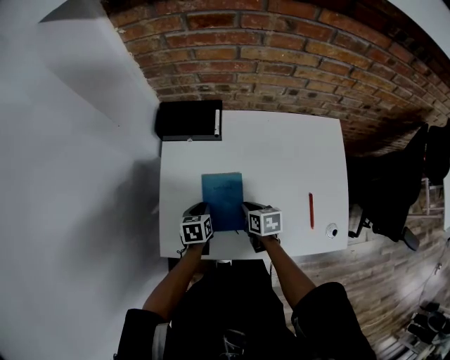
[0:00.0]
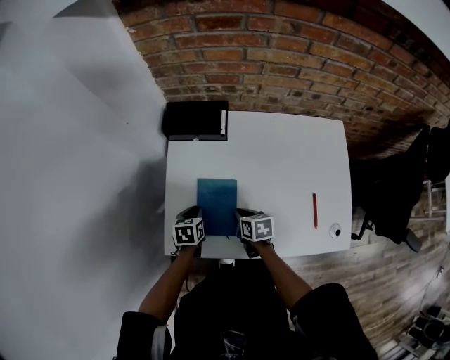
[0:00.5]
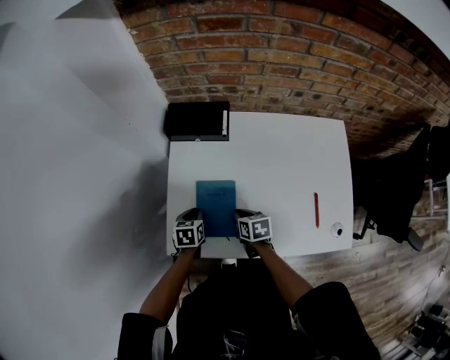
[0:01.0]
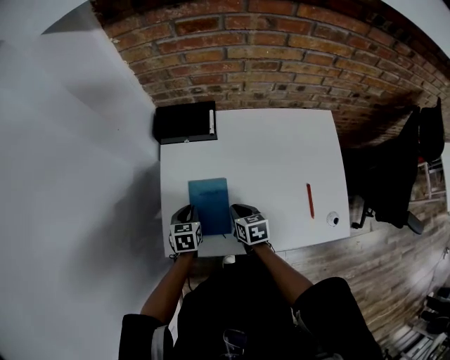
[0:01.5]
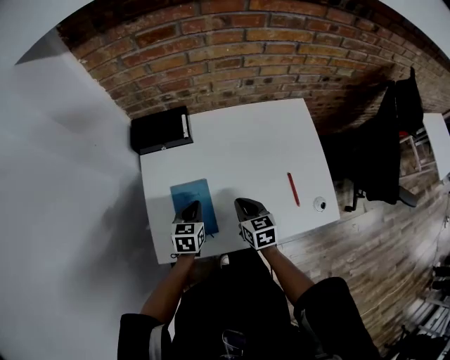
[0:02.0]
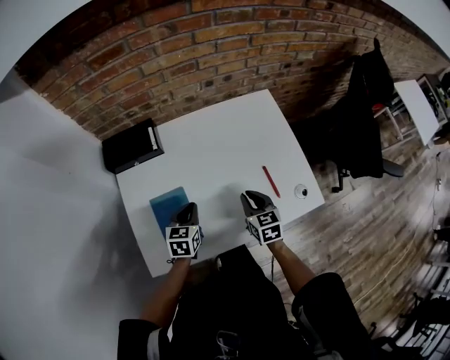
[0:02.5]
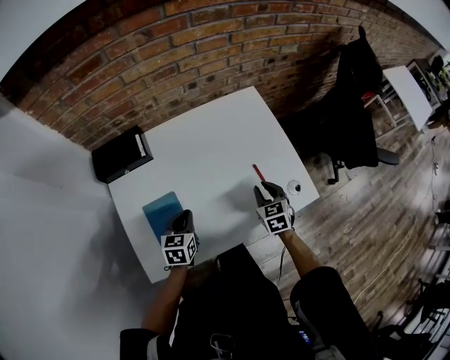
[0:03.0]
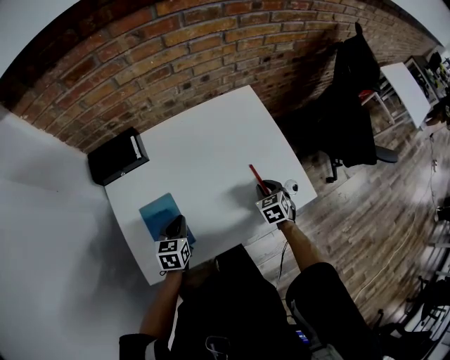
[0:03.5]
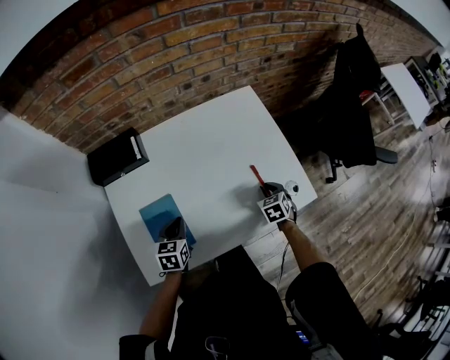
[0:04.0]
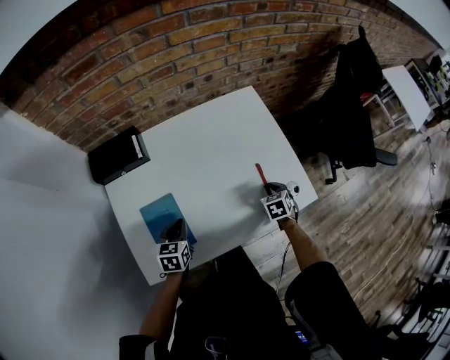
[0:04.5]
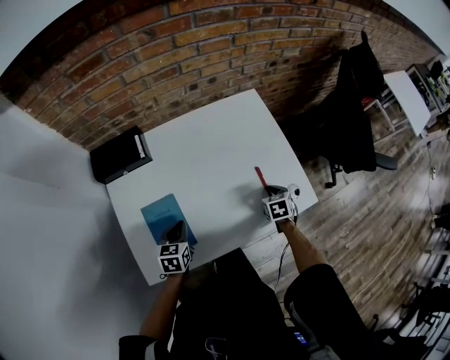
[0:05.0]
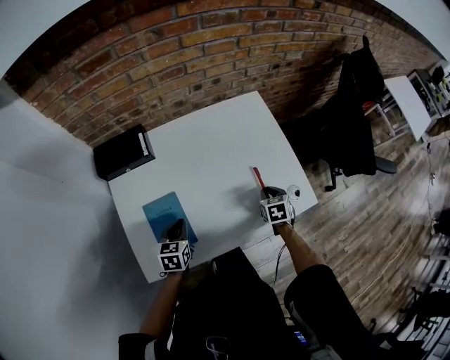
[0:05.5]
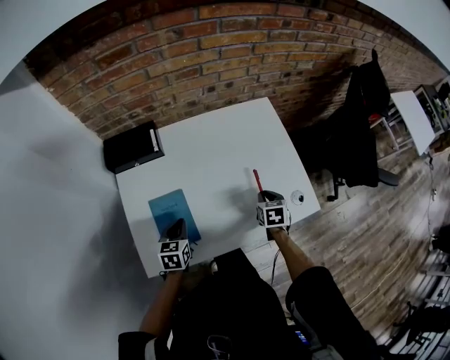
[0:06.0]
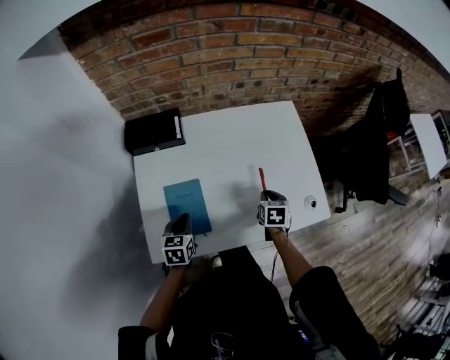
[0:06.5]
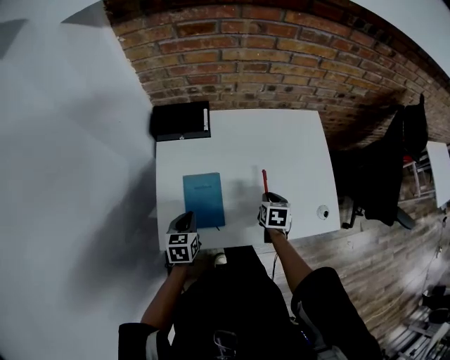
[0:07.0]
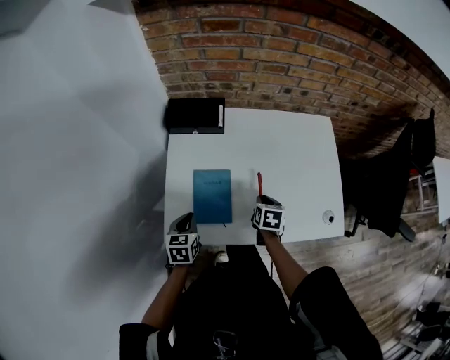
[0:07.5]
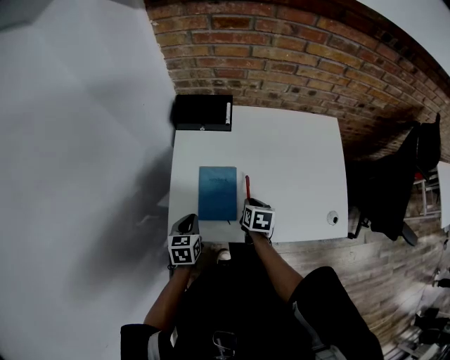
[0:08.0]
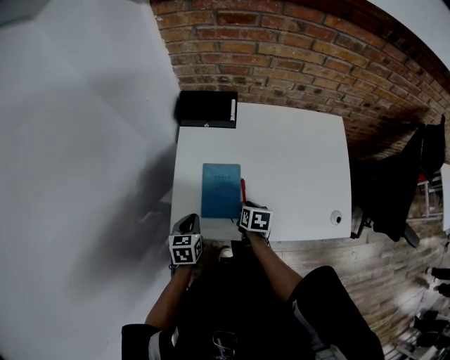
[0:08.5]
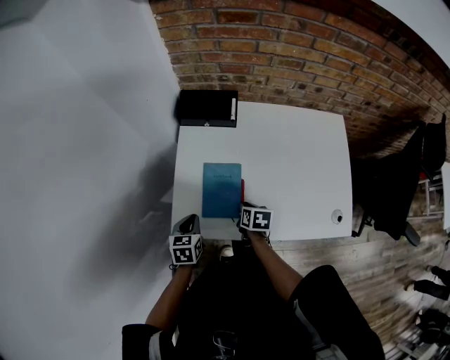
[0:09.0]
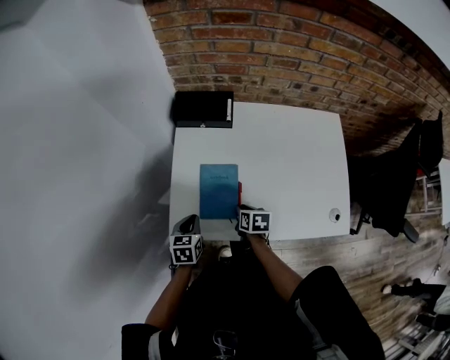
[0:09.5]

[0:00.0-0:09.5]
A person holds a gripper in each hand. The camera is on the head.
0:00.0 to 0:02.0: The grippers both shift upward by about 5 cm. The left gripper turns by some 20 degrees. The right gripper reaches about 5 cm to the left, then returns, and swivels roughly 20 degrees.
0:02.0 to 0:04.0: The left gripper heads to the right, covering about 5 cm. Meanwhile the right gripper heads to the right, covering roughly 25 cm, and rotates about 30 degrees.
0:04.0 to 0:05.5: The grippers move only a little.
0:05.5 to 0:07.5: The right gripper heads to the left, covering about 20 cm, while the left gripper is displaced to the left and backward by approximately 15 cm, and rotates approximately 20 degrees.
0:07.5 to 0:09.5: The right gripper shifts about 10 cm to the left.

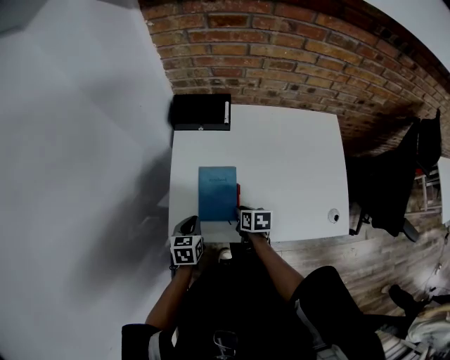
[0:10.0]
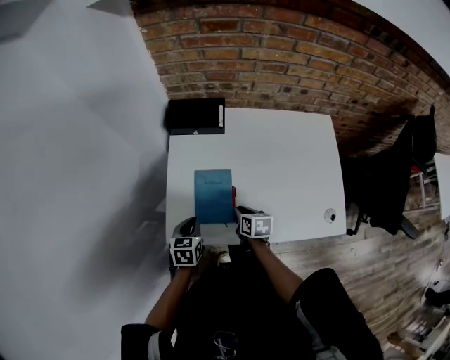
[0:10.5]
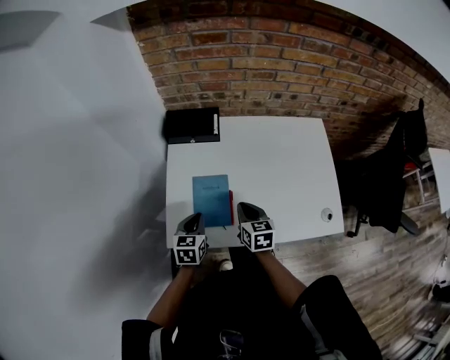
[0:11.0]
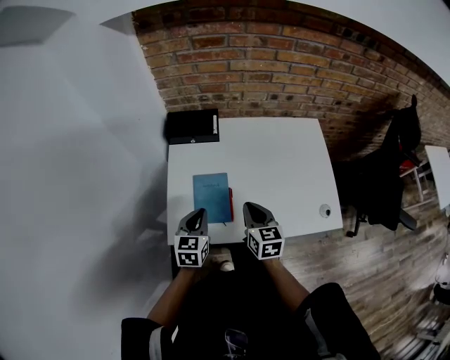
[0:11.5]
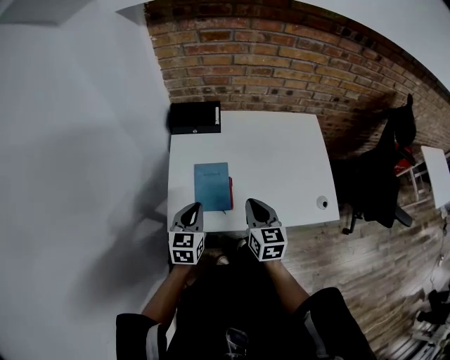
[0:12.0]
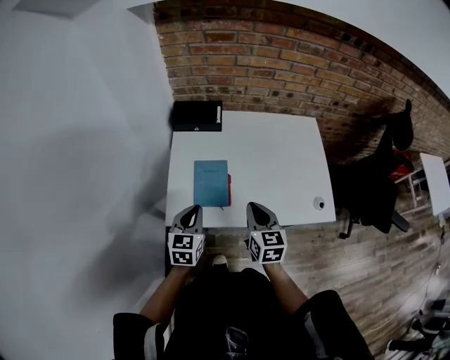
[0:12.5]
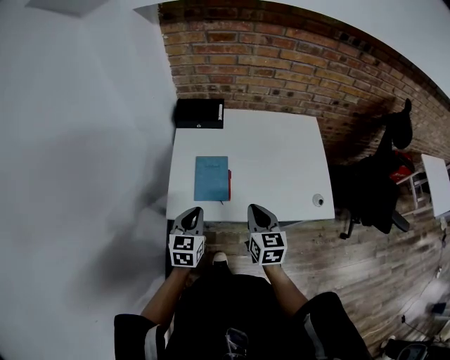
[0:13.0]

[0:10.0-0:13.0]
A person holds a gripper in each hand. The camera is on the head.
0:10.0 to 0:11.5: The right gripper is displaced upward by roughly 15 cm, and swivels approximately 40 degrees. Meanwhile the left gripper moves upward and to the right, about 10 cm, and rotates some 20 degrees.
0:11.5 to 0:13.0: Both grippers move backward, some 10 cm.

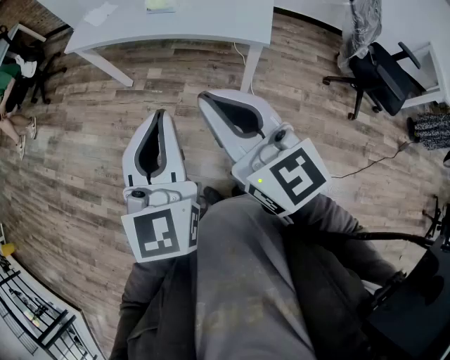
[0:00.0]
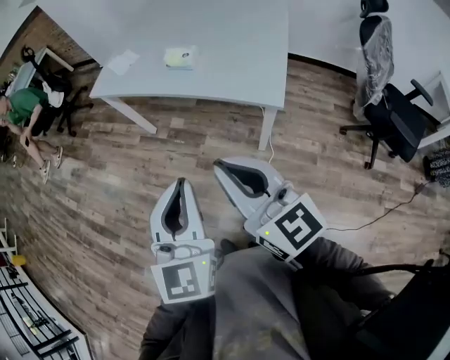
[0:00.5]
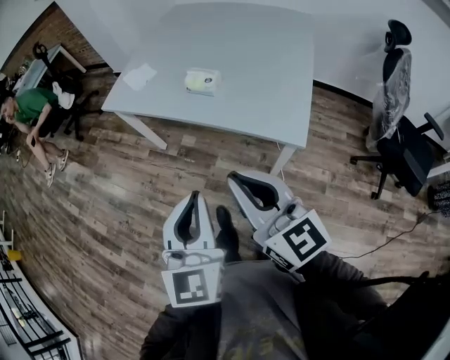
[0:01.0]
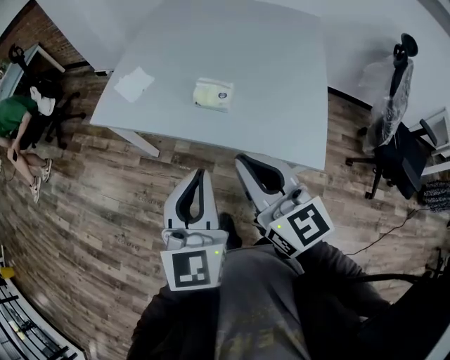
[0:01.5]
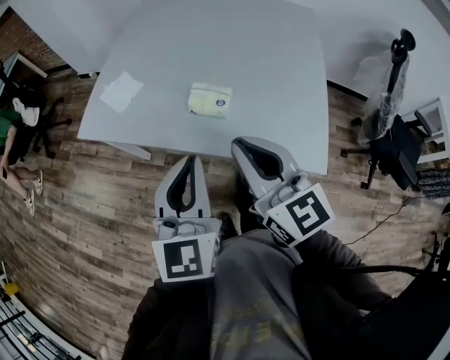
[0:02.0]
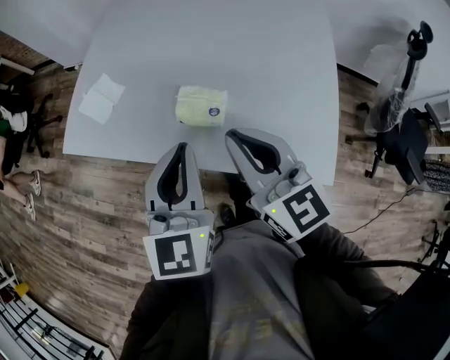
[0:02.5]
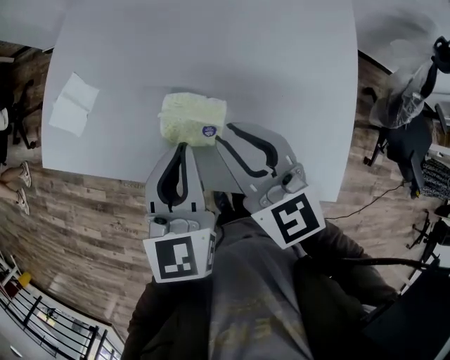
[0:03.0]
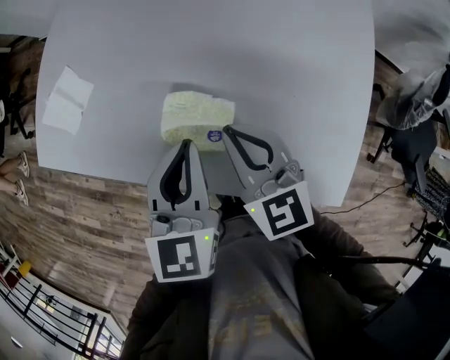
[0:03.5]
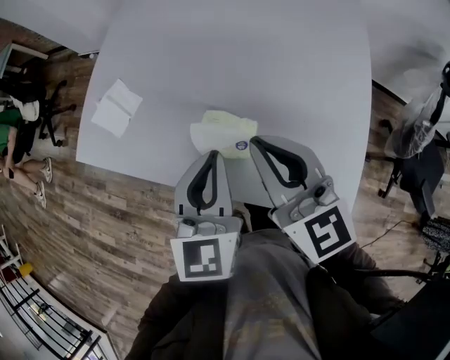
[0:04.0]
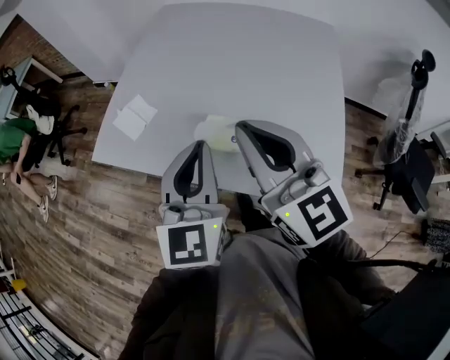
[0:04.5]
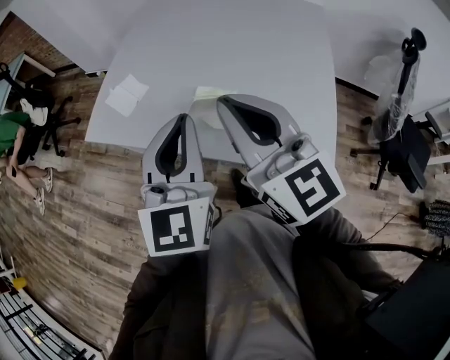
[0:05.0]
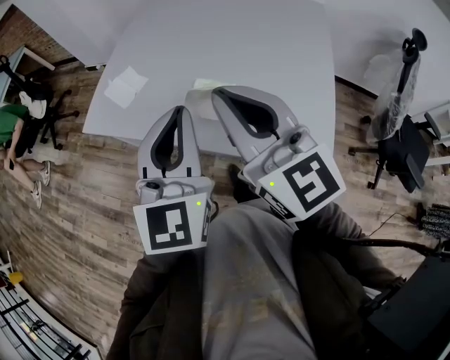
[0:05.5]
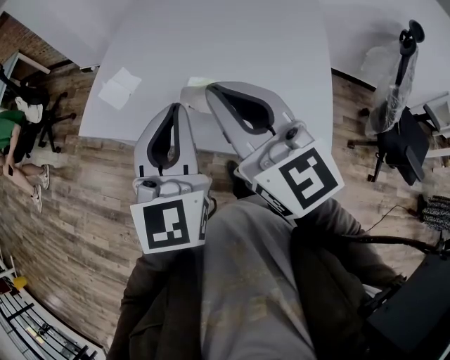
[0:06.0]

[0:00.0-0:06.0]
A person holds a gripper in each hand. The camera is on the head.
0:00.0 to 0:02.0: The pair of grippers is taken forward, roughly 40 cm.
0:02.0 to 0:04.0: The right gripper heads forward, covering about 20 cm. The left gripper is displaced forward and downward by roughly 20 cm.
0:04.0 to 0:06.0: Both grippers travel together upward and backward, about 20 cm.

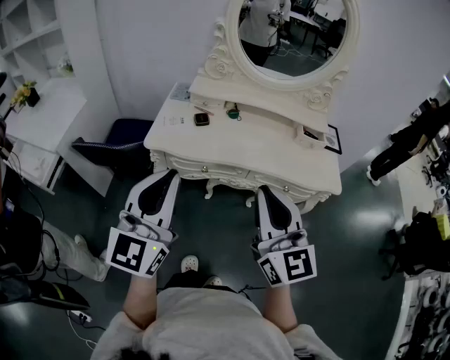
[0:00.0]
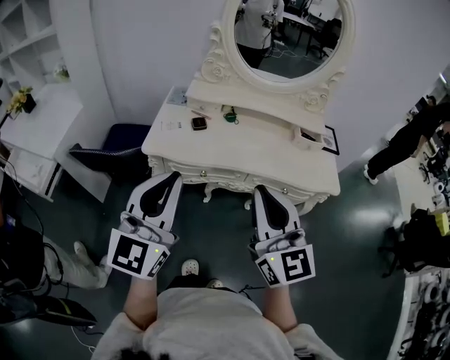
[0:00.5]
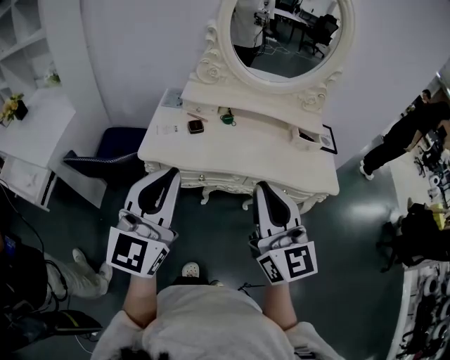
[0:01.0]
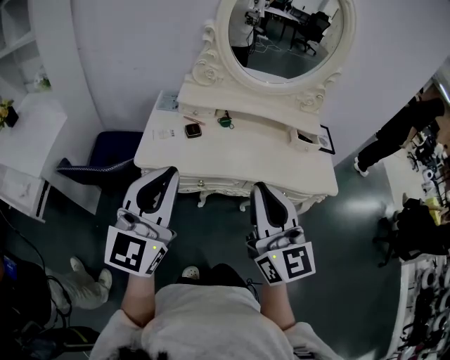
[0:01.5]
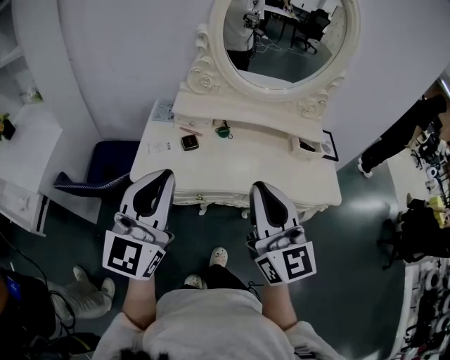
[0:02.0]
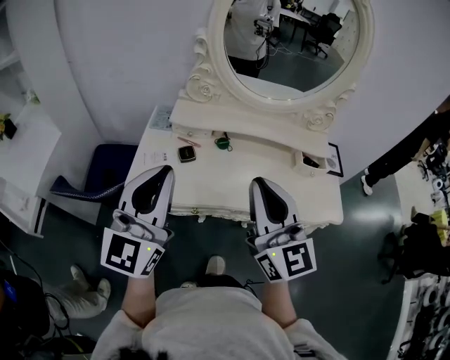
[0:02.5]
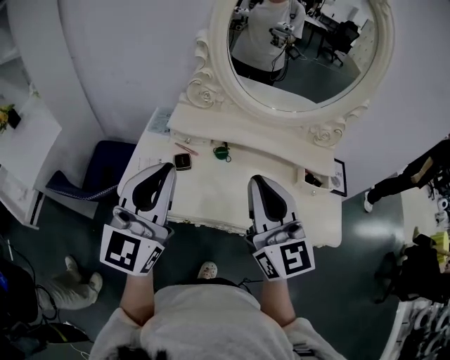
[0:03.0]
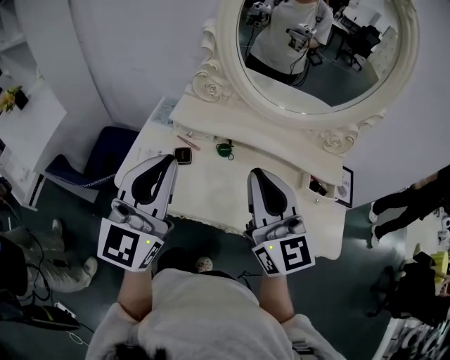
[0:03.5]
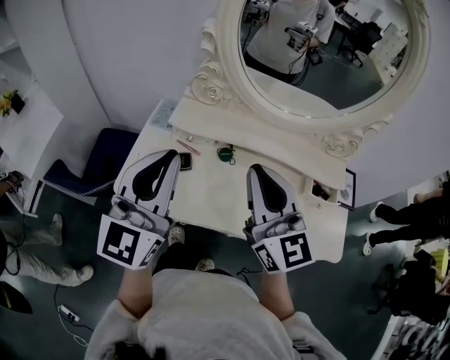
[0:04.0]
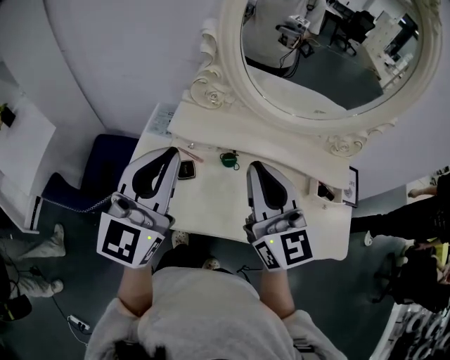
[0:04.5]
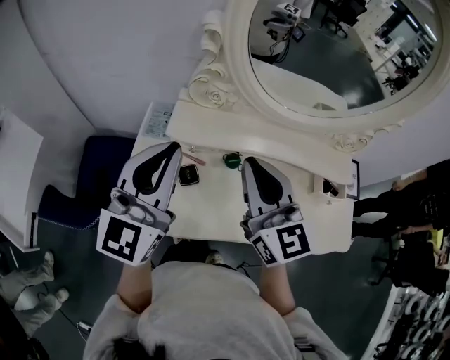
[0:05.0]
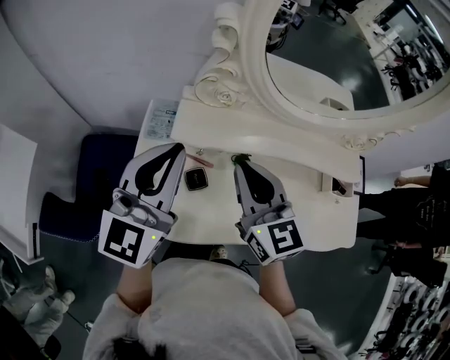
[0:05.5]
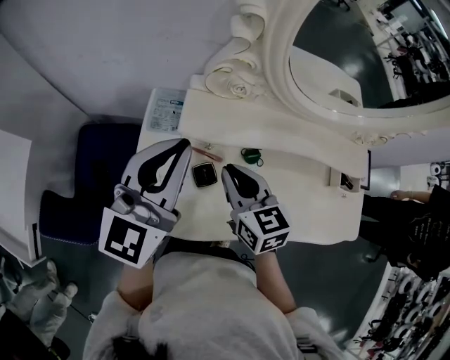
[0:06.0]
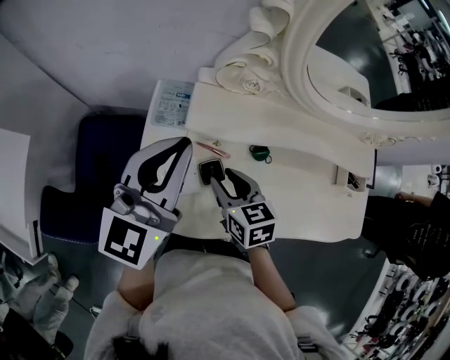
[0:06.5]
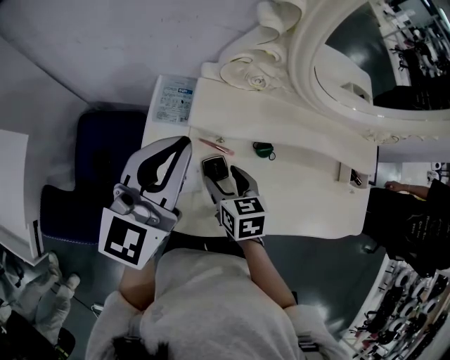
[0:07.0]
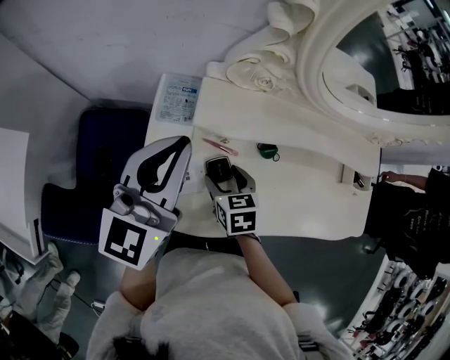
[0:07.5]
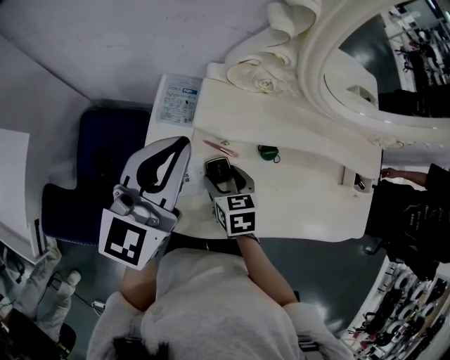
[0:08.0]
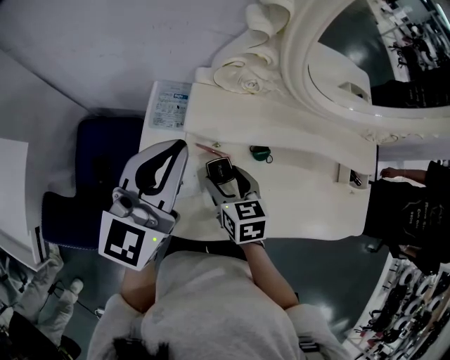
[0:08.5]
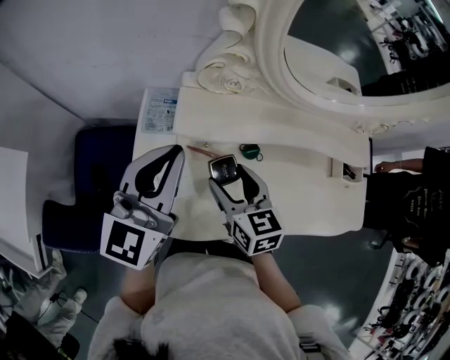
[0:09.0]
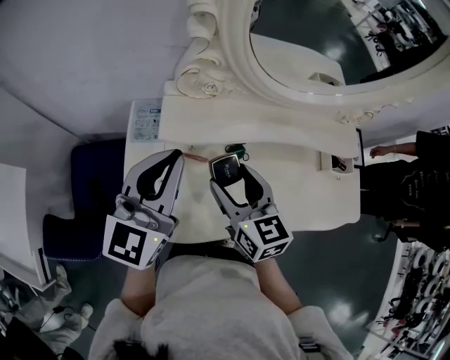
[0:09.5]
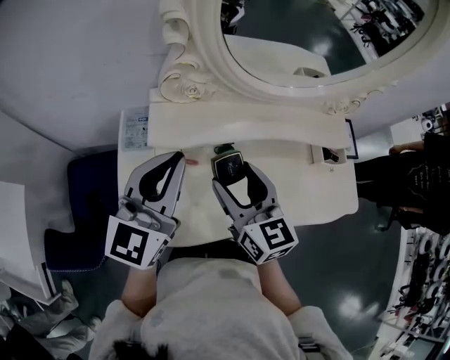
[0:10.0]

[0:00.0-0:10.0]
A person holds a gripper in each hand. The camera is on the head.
0:00.0 to 0:02.0: Both grippers travel together forward, approximately 15 cm.
0:02.0 to 0:04.0: The left gripper travels forward and to the right by approximately 20 cm; the right gripper travels forward by some 20 cm.
0:04.0 to 0:06.0: The right gripper shifts roughly 30 cm downward, to the left and forward, and angles its fingers downward, by some 30 degrees. The left gripper travels forward, downward and to the left by roughly 20 cm.
0:06.0 to 0:08.0: The right gripper shifts roughly 15 cm downward, changes its angle by roughly 20 degrees, and opens up. The left gripper ends up roughly 5 cm from where it was.
0:08.0 to 0:10.0: The right gripper is displaced upward and to the right by approximately 25 cm, and angles its fingers upward, by roughly 40 degrees, while the left gripper is displaced to the right by some 10 cm.
